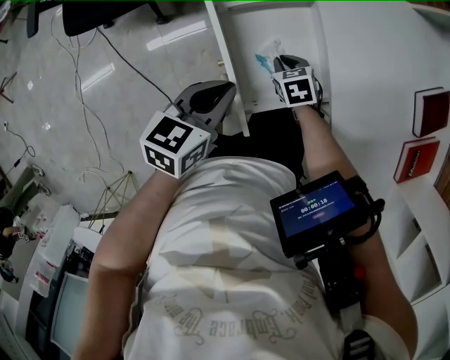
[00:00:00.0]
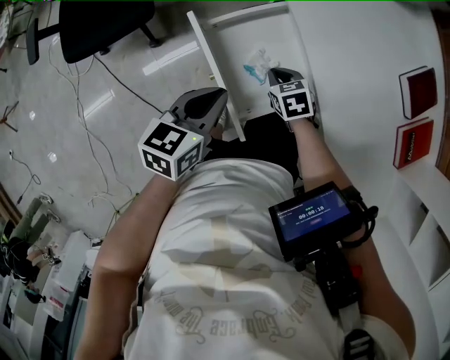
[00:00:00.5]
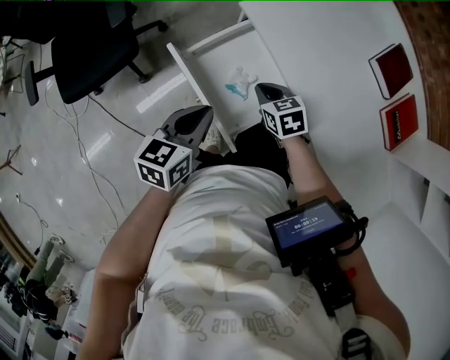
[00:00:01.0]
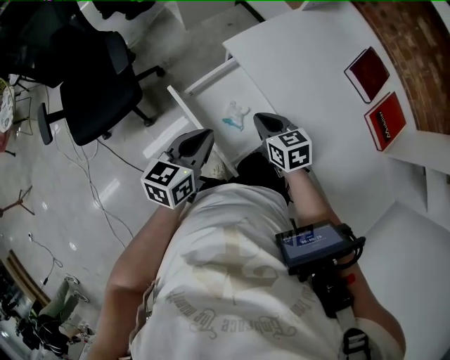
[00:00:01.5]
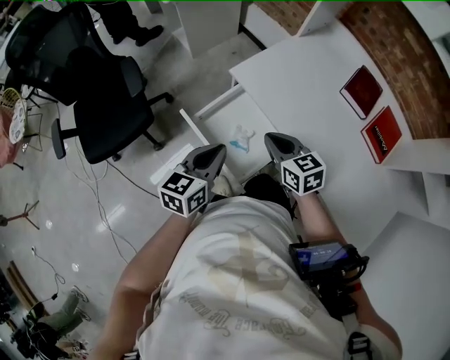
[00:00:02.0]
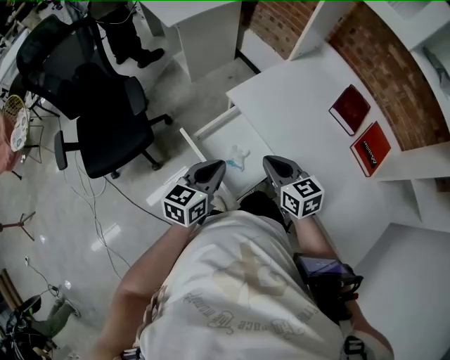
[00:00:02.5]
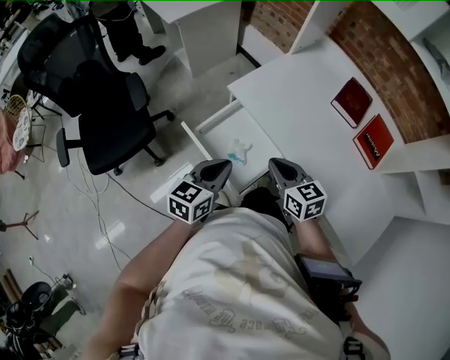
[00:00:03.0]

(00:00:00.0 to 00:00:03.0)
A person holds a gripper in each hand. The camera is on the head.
00:00:00.0 - 00:00:01.5: The right gripper heads upward, covering roughly 20 cm, and turns by approximately 30 degrees. The left gripper goes approximately 10 cm upward.
00:00:01.5 - 00:00:03.0: The right gripper heads upward and backward, covering about 10 cm.

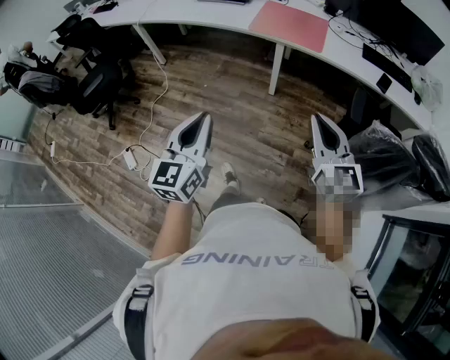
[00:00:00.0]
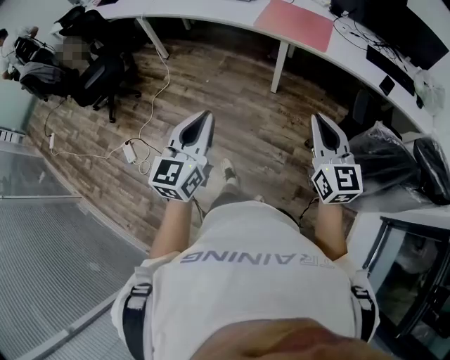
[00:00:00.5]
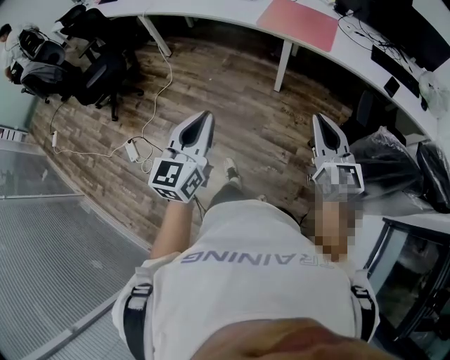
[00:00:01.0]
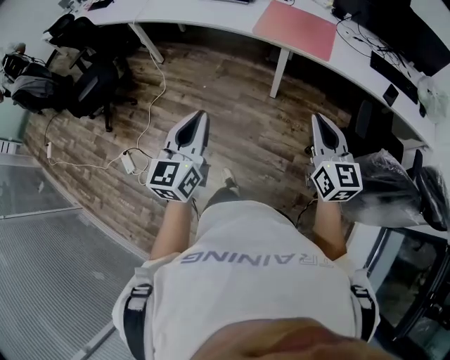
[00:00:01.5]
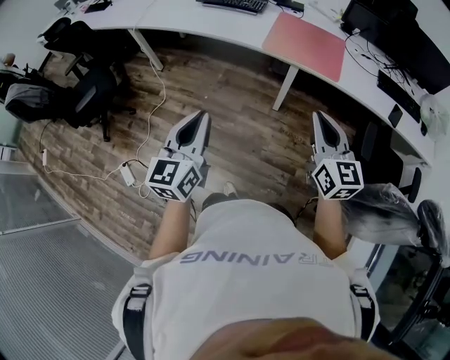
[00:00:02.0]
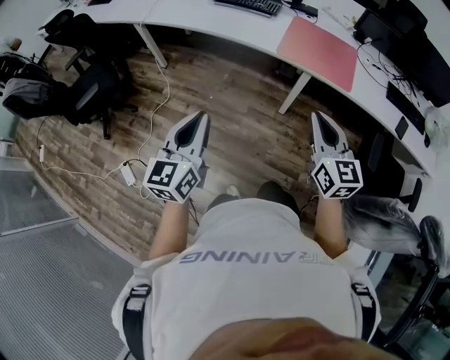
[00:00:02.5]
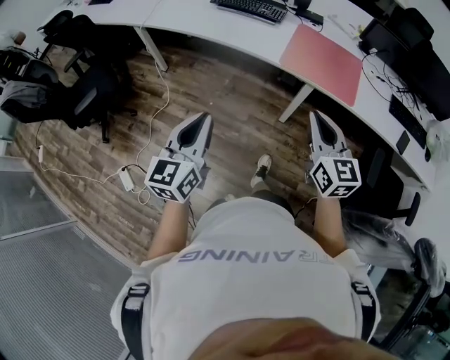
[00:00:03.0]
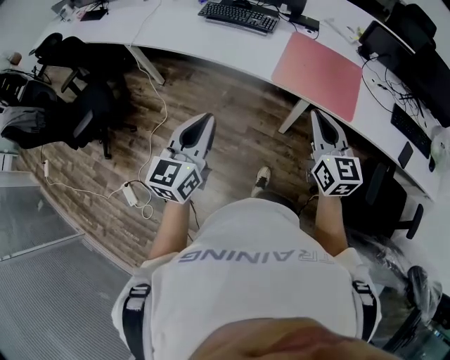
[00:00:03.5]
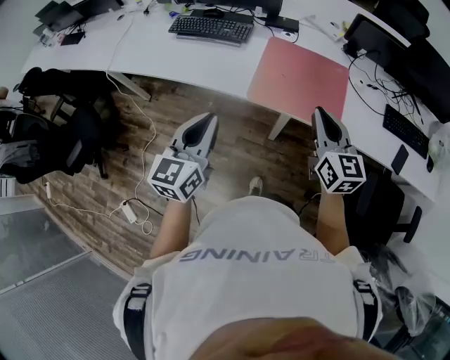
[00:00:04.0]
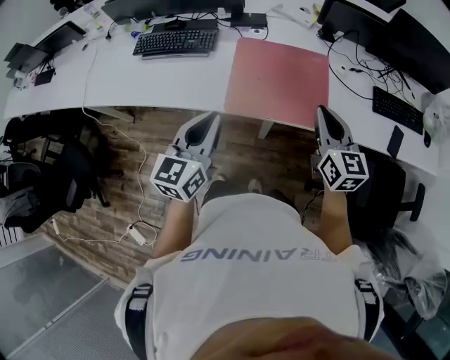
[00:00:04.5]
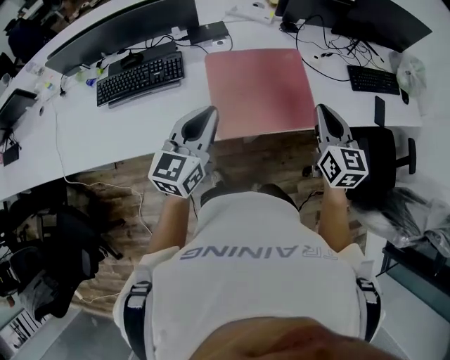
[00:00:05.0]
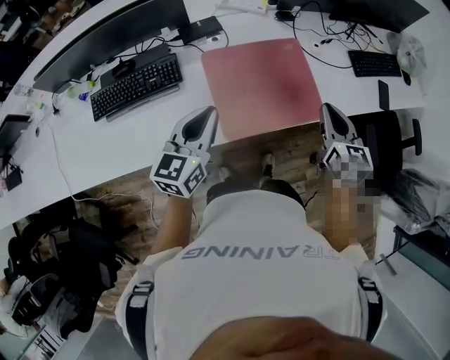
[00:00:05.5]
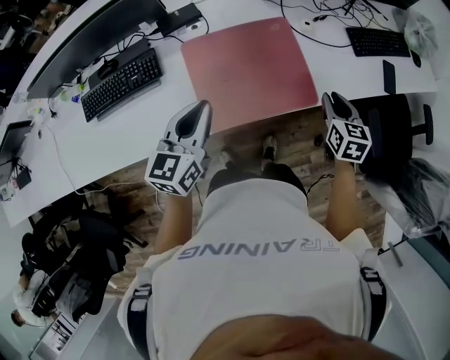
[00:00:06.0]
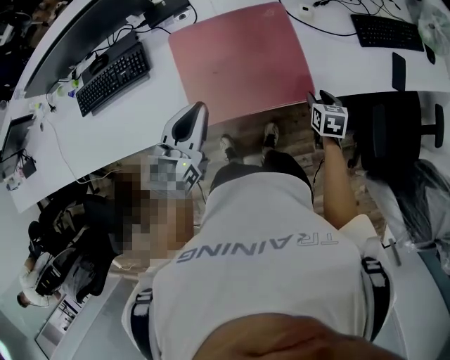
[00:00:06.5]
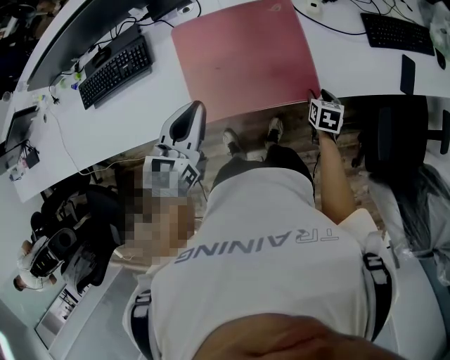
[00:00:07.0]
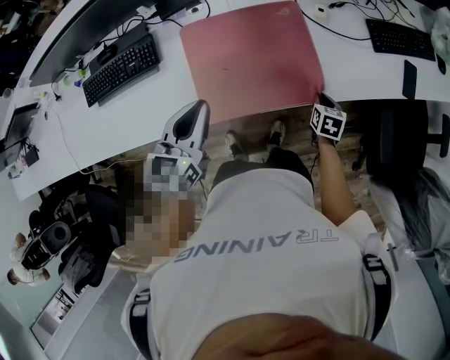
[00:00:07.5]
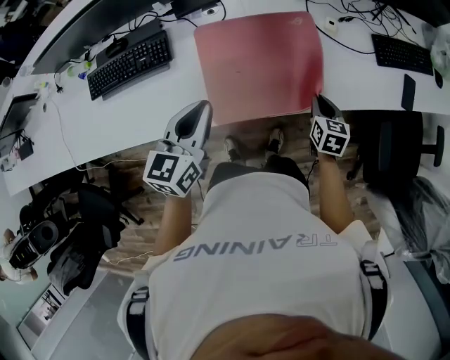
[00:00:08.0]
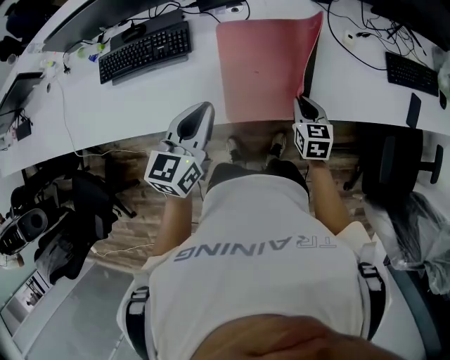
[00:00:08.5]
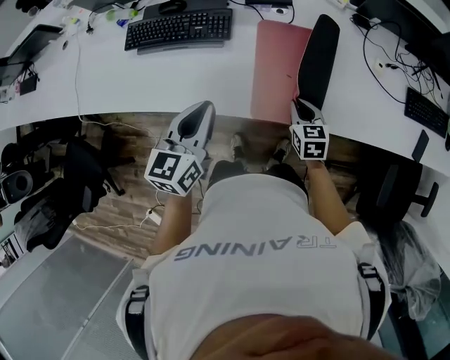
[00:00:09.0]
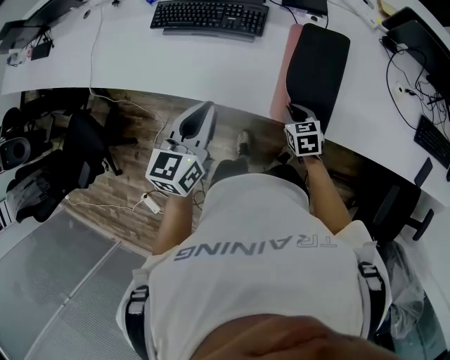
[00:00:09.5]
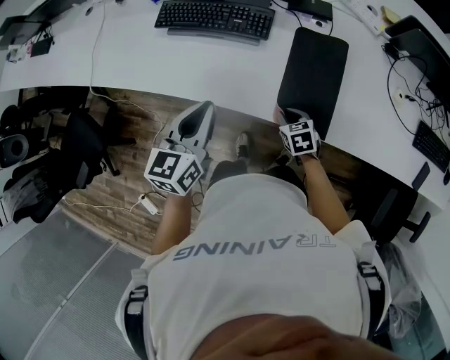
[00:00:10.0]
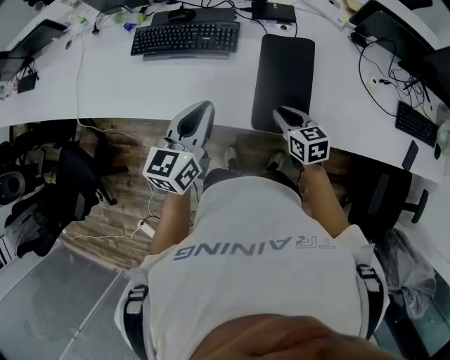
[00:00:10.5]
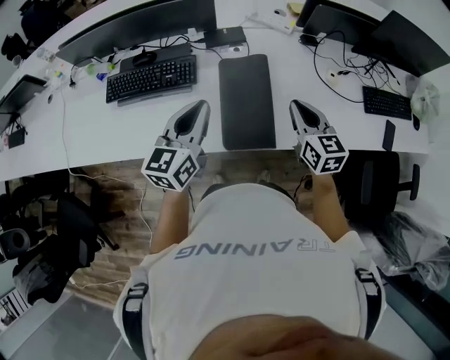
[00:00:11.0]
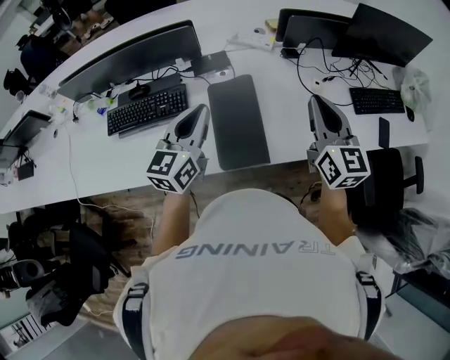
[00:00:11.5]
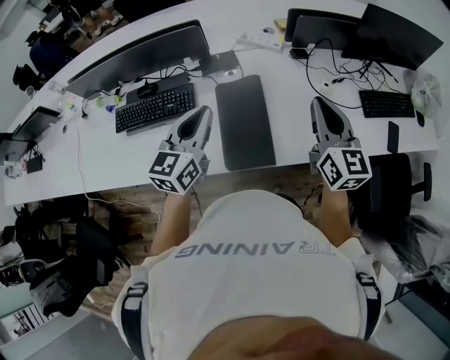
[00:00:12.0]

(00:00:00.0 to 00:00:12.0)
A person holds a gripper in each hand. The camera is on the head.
00:00:00.0 - 00:00:02.0: The right gripper moves forward, about 20 cm; the left gripper is displaced forward and to the left by roughly 20 cm.
00:00:02.0 - 00:00:04.0: The grippers both shift forward by roughly 35 cm.
00:00:04.0 - 00:00:06.0: The right gripper shifts by some 25 cm, and changes its angle by some 50 degrees. Meanwhile the left gripper moves roughly 30 cm, and swivels about 30 degrees.
00:00:06.0 - 00:00:08.0: The right gripper heads downward, covering about 10 cm, and opens, then closes once more.
00:00:08.0 - 00:00:10.0: The left gripper shifts by about 25 cm, and swivels about 30 degrees, while the right gripper changes place by roughly 35 cm, and turns by some 50 degrees.
00:00:10.0 - 00:00:12.0: The left gripper shifts by approximately 25 cm, and swivels about 30 degrees. Meanwhile the right gripper heads upward, covering roughly 35 cm, and tips its fingers upward by roughly 50 degrees.

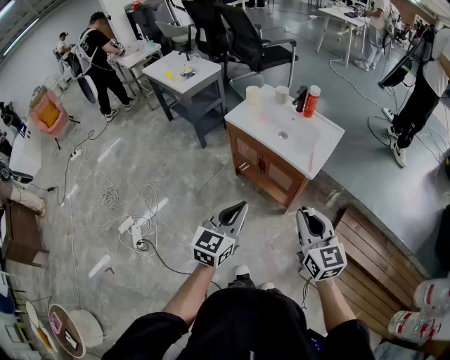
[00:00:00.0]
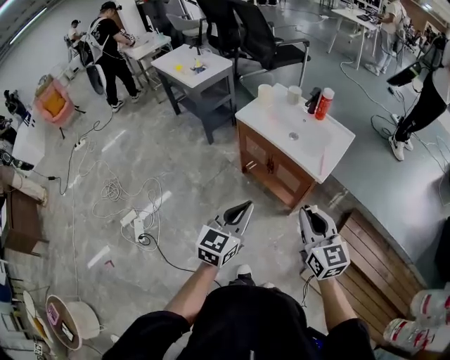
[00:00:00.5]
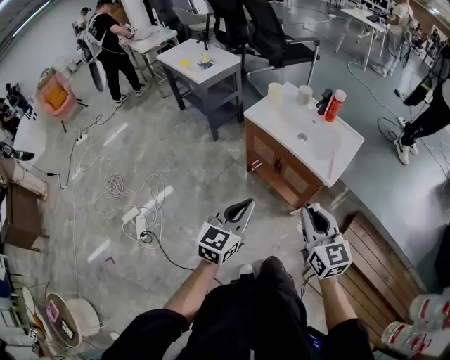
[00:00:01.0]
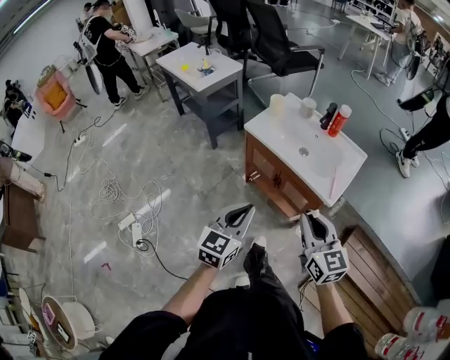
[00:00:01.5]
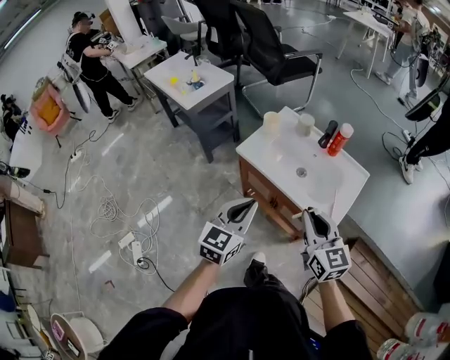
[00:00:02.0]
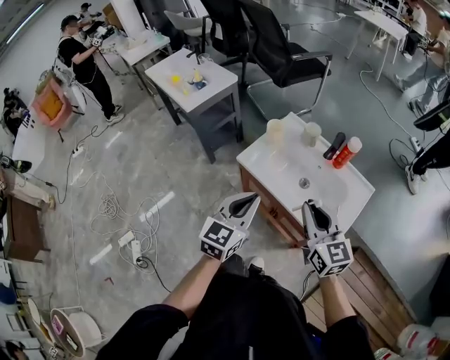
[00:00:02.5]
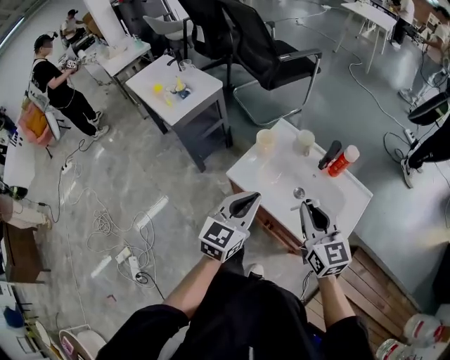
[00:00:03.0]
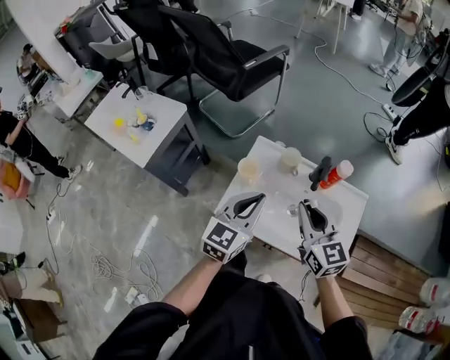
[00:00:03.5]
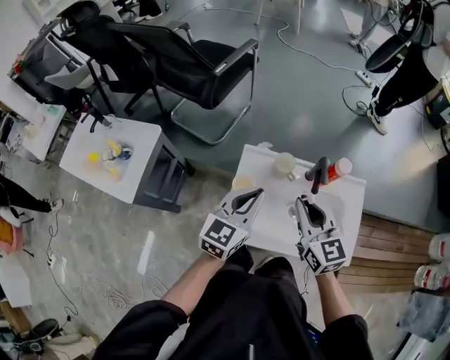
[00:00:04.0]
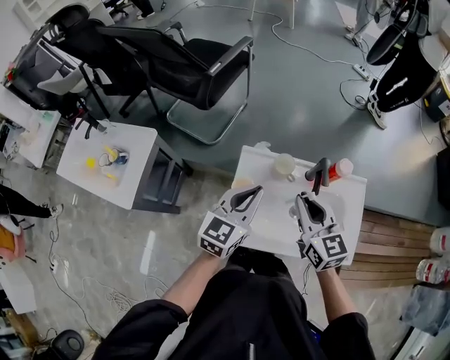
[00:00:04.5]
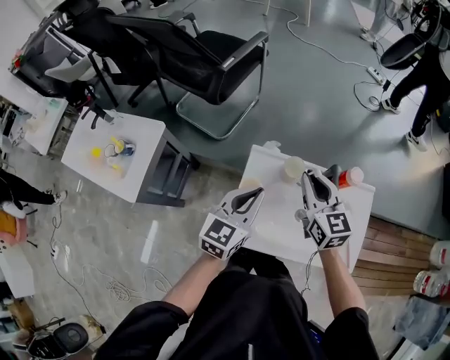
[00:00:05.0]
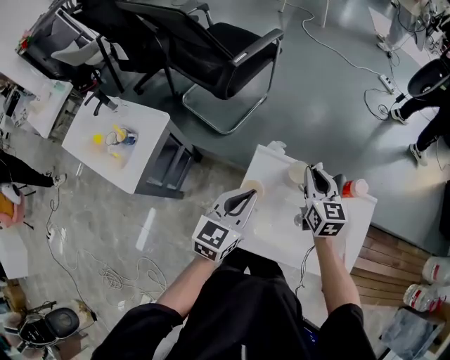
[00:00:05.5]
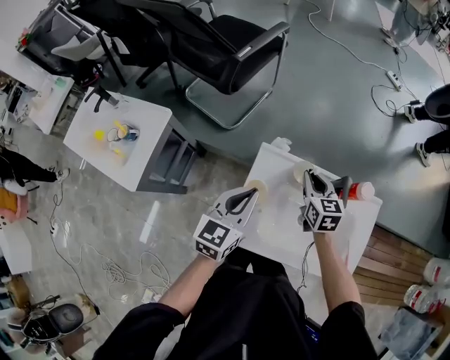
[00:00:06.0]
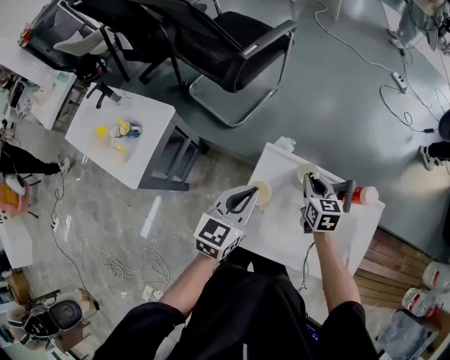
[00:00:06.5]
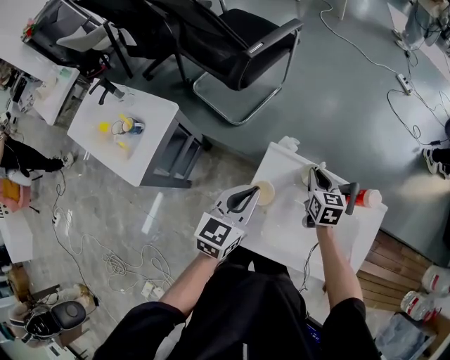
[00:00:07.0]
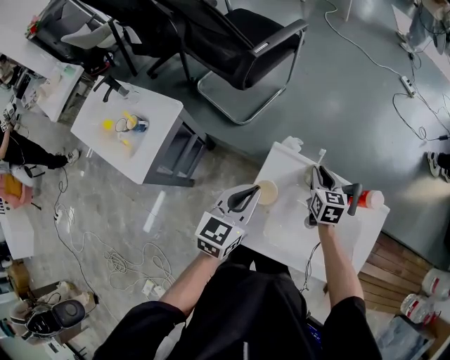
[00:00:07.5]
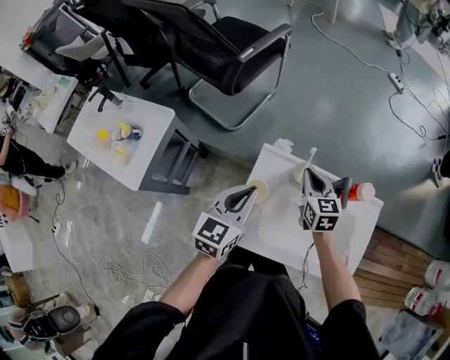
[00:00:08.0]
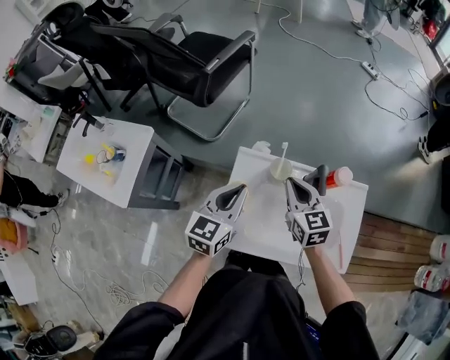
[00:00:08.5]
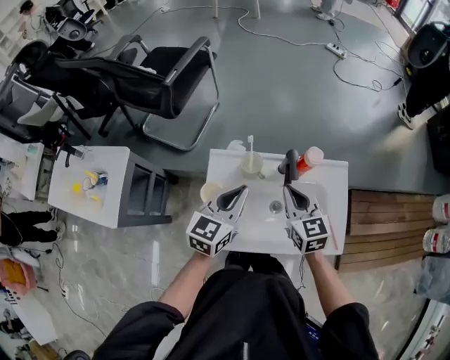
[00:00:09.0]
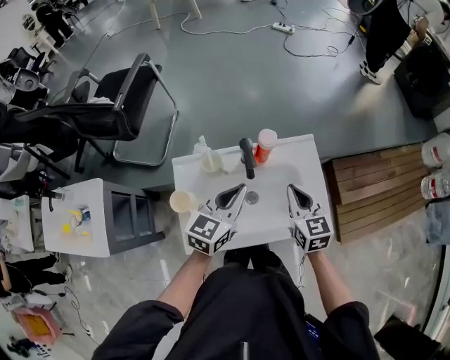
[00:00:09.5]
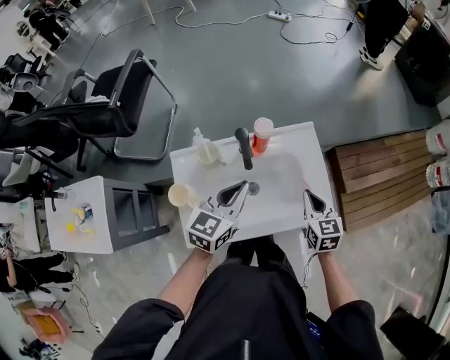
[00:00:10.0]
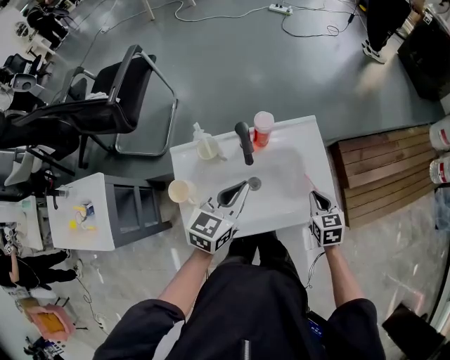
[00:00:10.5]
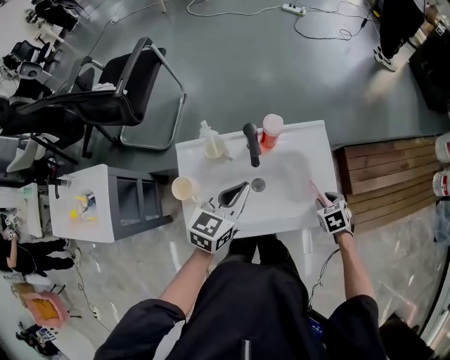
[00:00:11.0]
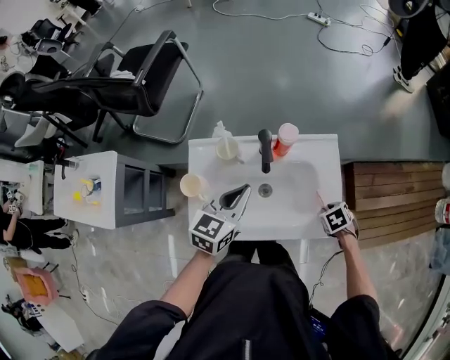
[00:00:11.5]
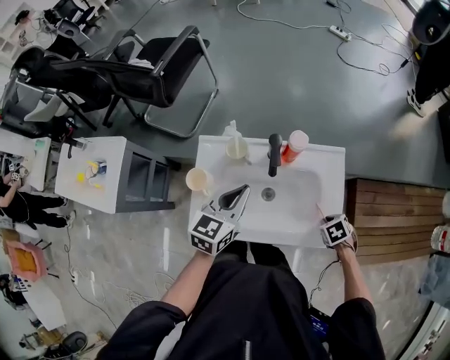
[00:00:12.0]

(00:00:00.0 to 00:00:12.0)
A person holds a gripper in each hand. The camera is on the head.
00:00:00.0 - 00:00:02.0: The grippers both shift forward by approximately 30 cm.
00:00:02.0 - 00:00:04.0: The left gripper moves approximately 40 cm, and rotates some 30 degrees. Meanwhile the right gripper moves approximately 35 cm, and turns by about 30 degrees.
00:00:04.0 - 00:00:06.0: The left gripper travels to the left by approximately 5 cm, while the right gripper heads forward and downward, covering some 20 cm.
00:00:06.0 - 00:00:08.0: The grippers make only small movements.
00:00:08.0 - 00:00:10.0: The left gripper shifts by some 25 cm, and changes its angle by roughly 30 degrees, while the right gripper moves roughly 5 cm upward and comes back, and changes its angle by roughly 30 degrees.
00:00:10.0 - 00:00:12.0: The left gripper shifts by roughly 5 cm; the right gripper shifts about 15 cm downward, angles its fingers downward, by roughly 50 degrees, and opens, then closes again.
